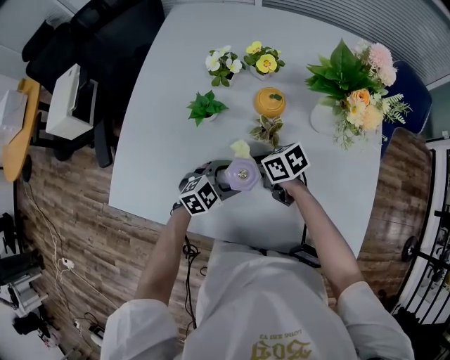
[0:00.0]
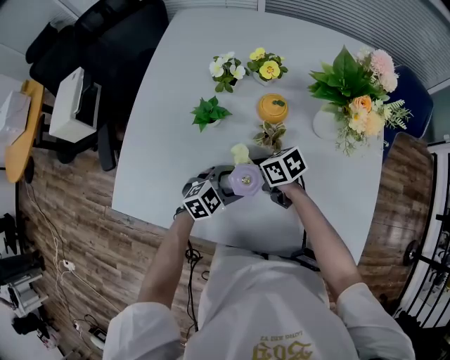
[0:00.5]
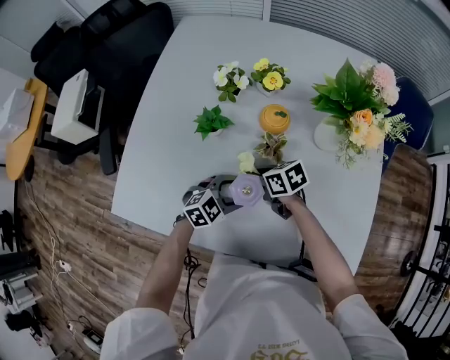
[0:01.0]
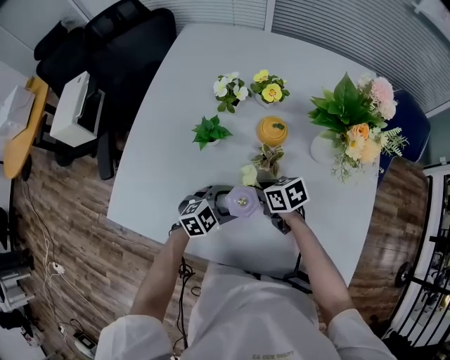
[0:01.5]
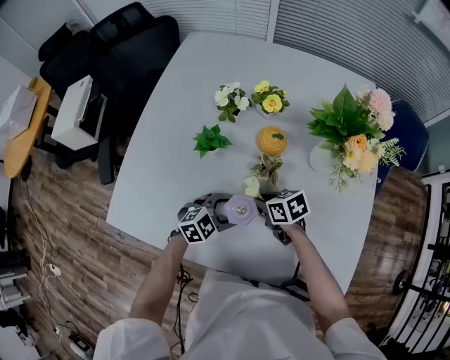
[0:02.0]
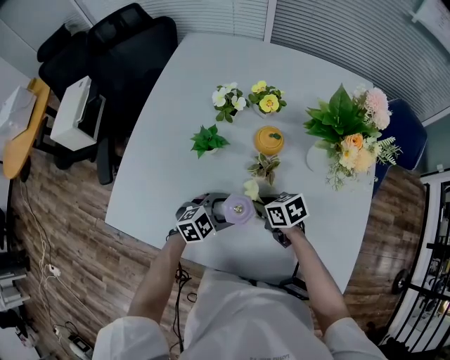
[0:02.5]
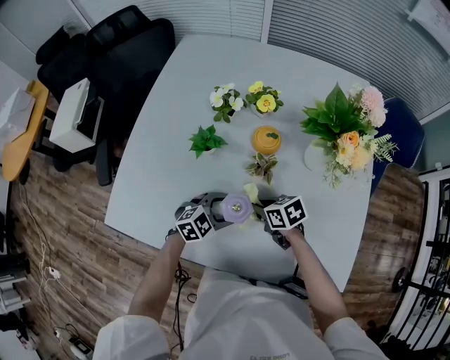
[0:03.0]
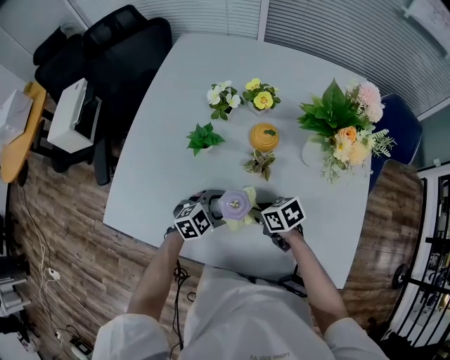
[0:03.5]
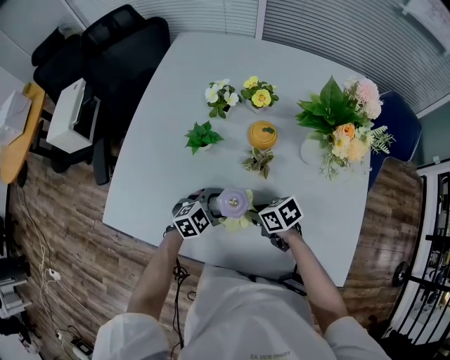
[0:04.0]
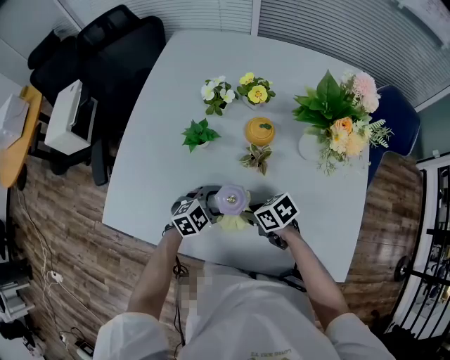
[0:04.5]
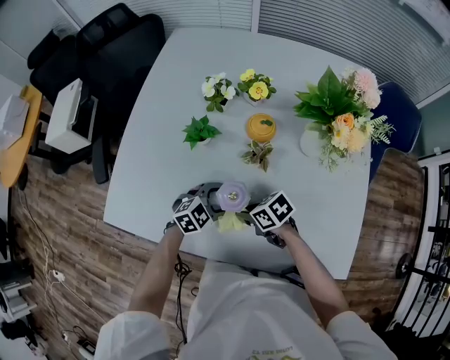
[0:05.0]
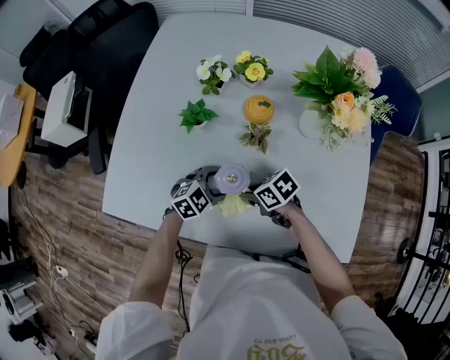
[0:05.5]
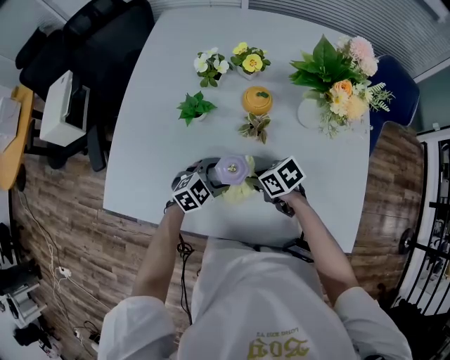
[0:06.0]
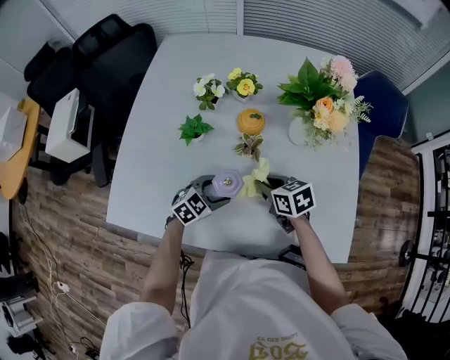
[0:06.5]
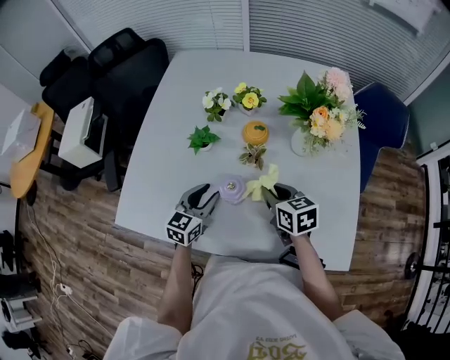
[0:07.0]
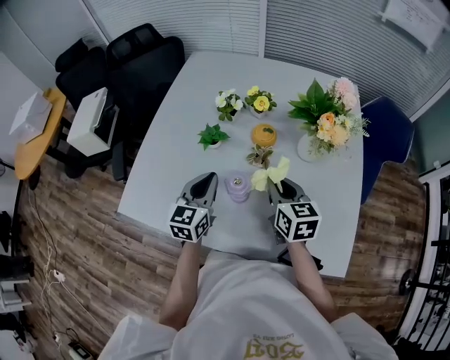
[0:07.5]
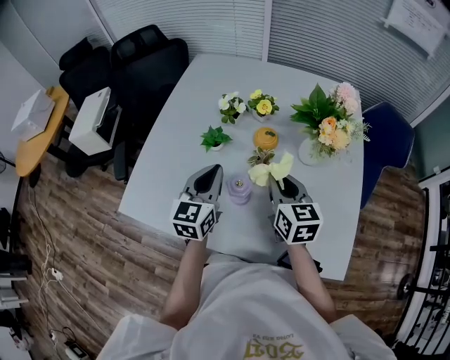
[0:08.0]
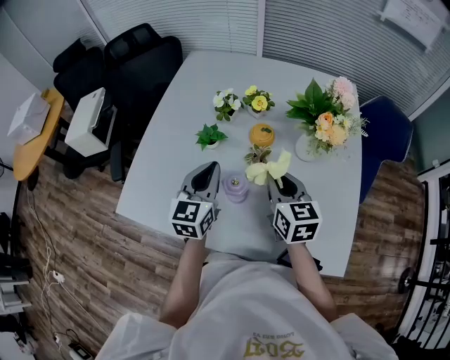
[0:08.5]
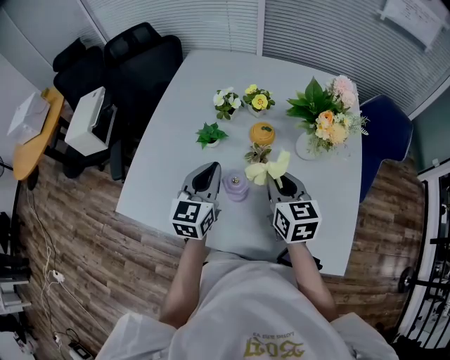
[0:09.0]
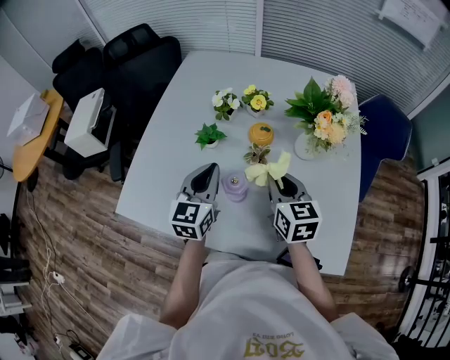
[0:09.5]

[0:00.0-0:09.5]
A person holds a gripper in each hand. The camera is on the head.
0:00.0 to 0:02.0: There are only small adjustments of the grippers.
0:02.0 to 0:04.0: The right gripper shifts by some 5 cm.
0:04.0 to 0:05.5: The grippers make only small movements.
0:05.5 to 0:07.5: The two grippers go about 20 cm upward. The left gripper turns by about 60 degrees, and closes up, while the right gripper changes its angle by about 60 degrees.
0:07.5 to 0:09.5: The grippers make only small movements.

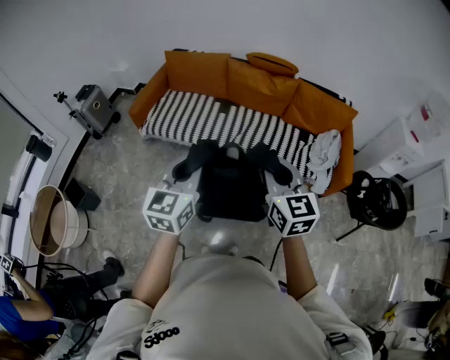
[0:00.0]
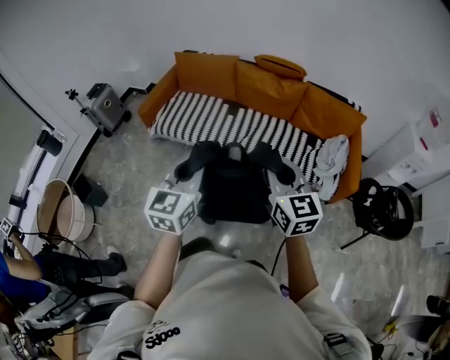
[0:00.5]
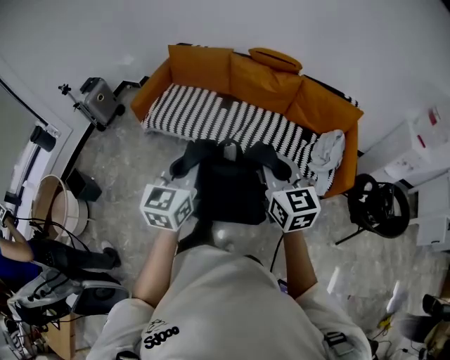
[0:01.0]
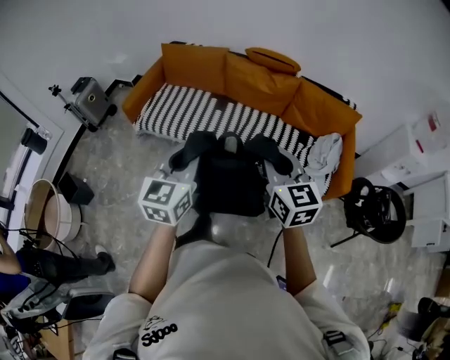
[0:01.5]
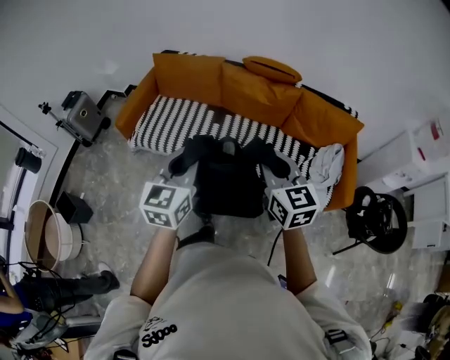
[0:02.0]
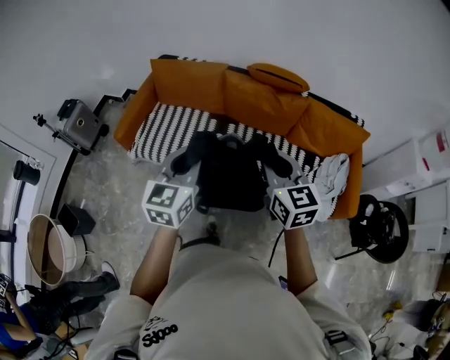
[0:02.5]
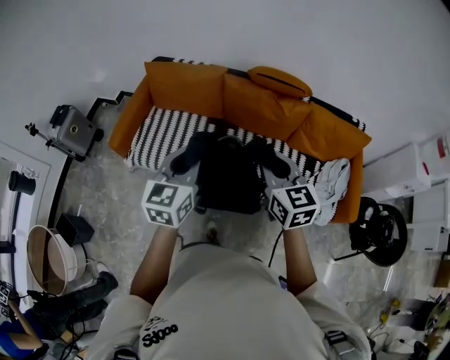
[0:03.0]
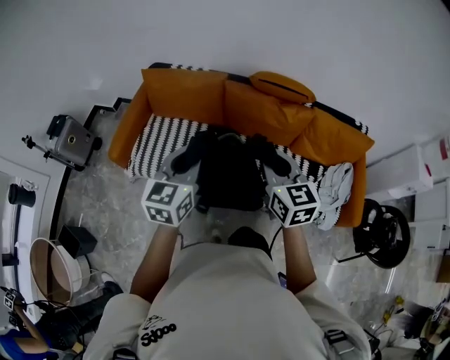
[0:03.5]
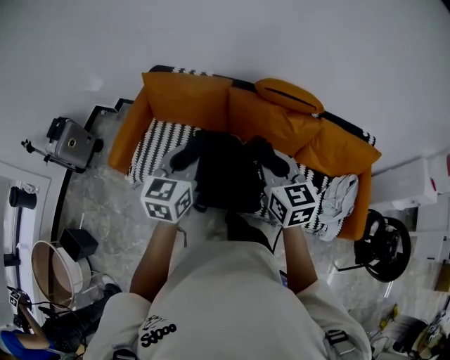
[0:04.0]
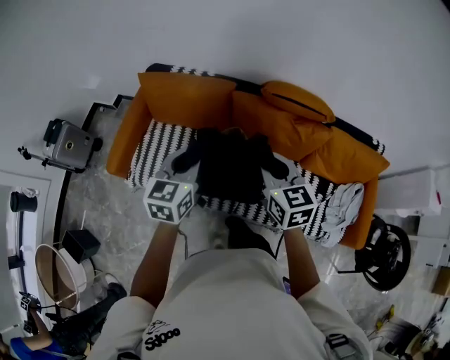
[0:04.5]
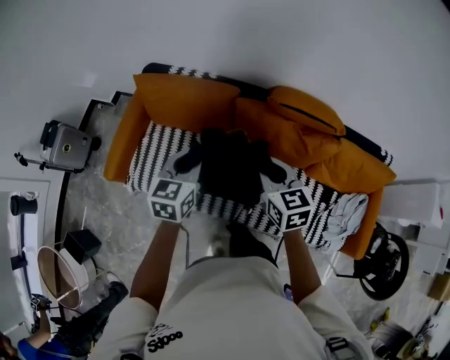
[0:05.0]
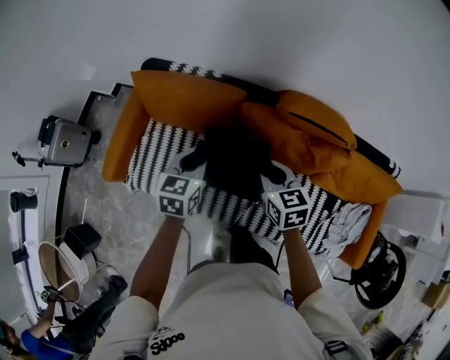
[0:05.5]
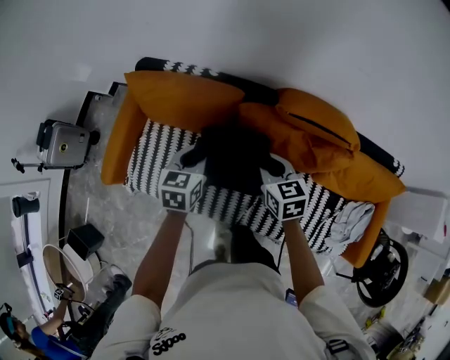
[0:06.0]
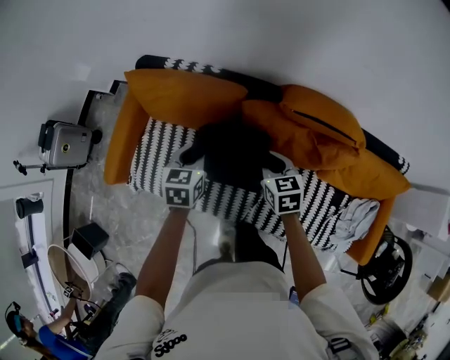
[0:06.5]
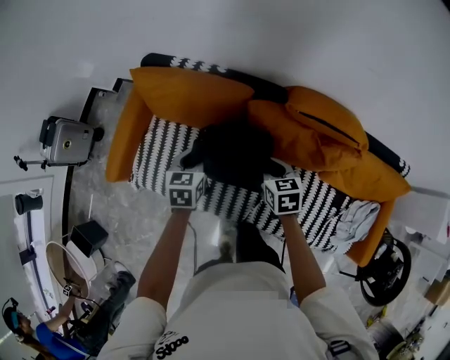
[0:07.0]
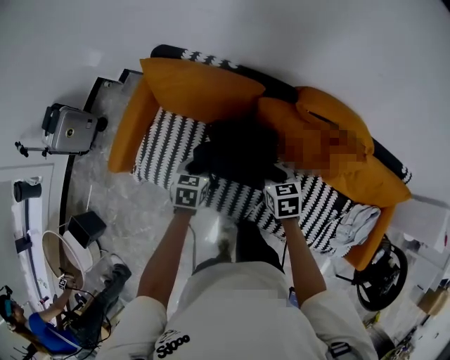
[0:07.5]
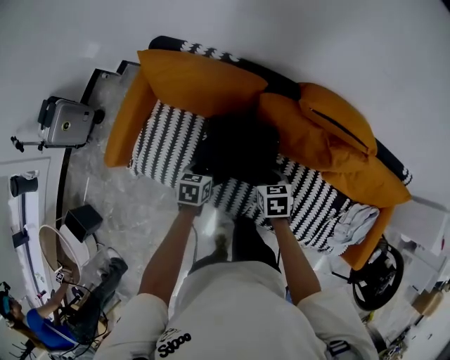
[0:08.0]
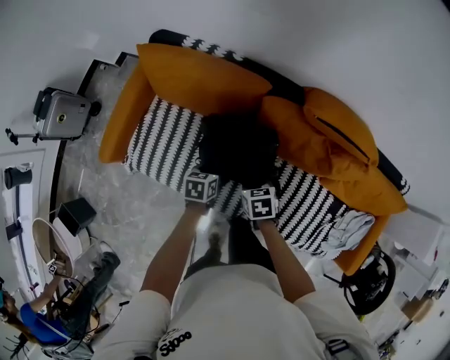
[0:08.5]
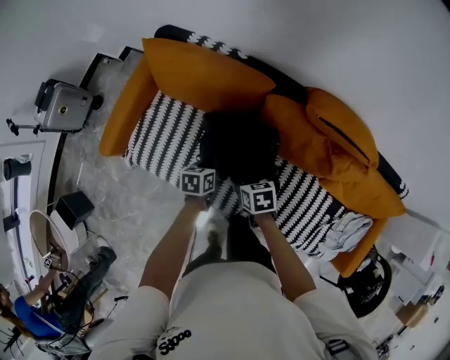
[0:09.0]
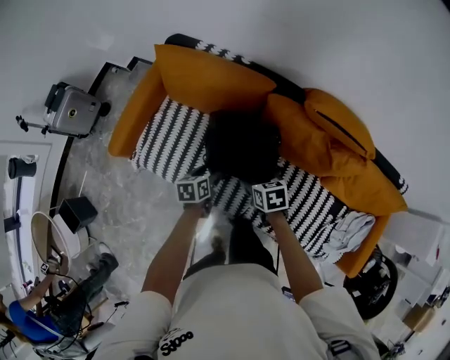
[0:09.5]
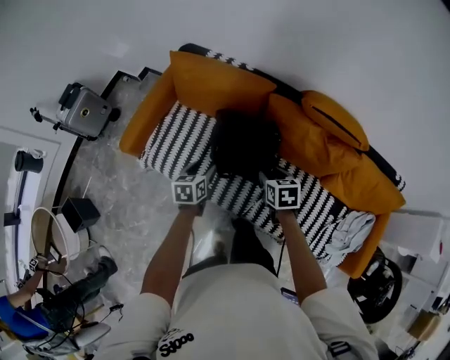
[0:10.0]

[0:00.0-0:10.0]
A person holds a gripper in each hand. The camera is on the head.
0:00.0 to 0:02.0: Both grippers move forward, approximately 20 cm.
0:02.0 to 0:04.0: Both grippers move forward, approximately 30 cm.
0:04.0 to 0:06.0: Both grippers travel together forward and downward, some 35 cm. The left gripper swivels about 20 degrees, while the right gripper rotates approximately 20 degrees.
0:06.0 to 0:08.0: Both grippers travel together downward and backward, about 15 cm. The right gripper turns by roughly 20 degrees; the left gripper swivels roughly 20 degrees, and opens.
0:08.0 to 0:10.0: The left gripper is displaced backward, to the left and upward by approximately 10 cm, and opens. The right gripper is displaced backward and upward by approximately 10 cm, and opens up.

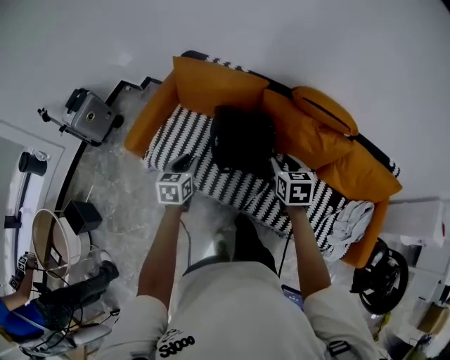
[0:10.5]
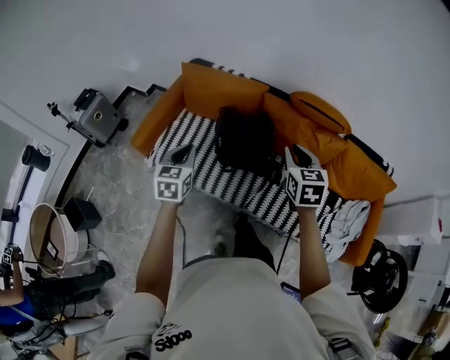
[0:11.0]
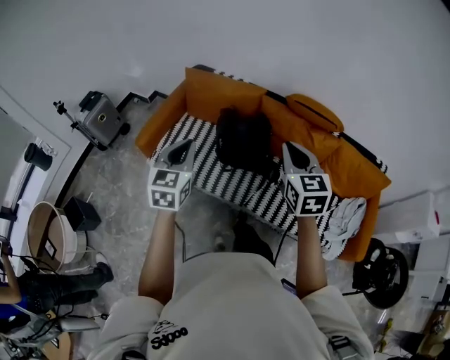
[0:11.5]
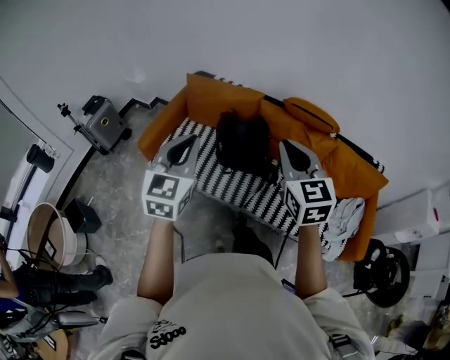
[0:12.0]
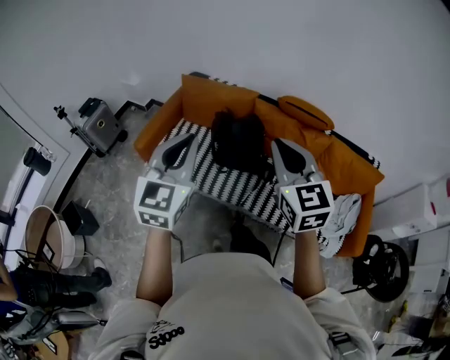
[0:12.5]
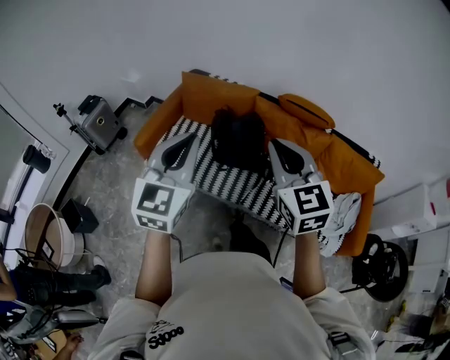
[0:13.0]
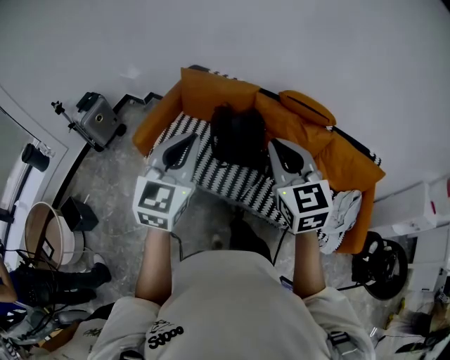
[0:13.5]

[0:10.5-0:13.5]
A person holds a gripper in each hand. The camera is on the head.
0:10.5 to 0:12.0: Both grippers travel together upward and backward, about 35 cm. The right gripper turns by approximately 30 degrees, and closes up; the left gripper changes its angle by some 40 degrees, and closes.
0:12.0 to 0:13.5: The left gripper ends up roughly 5 cm from where it was.

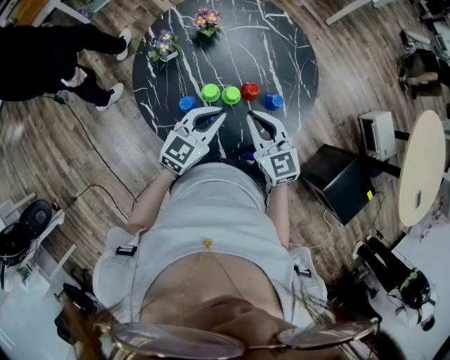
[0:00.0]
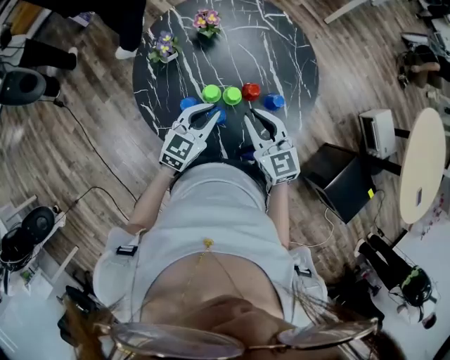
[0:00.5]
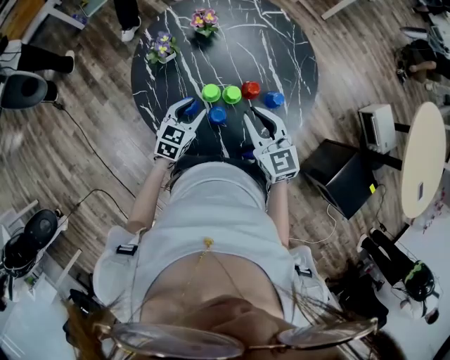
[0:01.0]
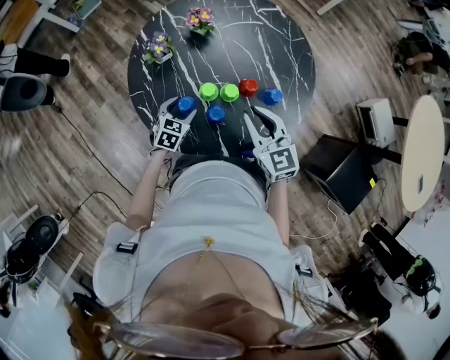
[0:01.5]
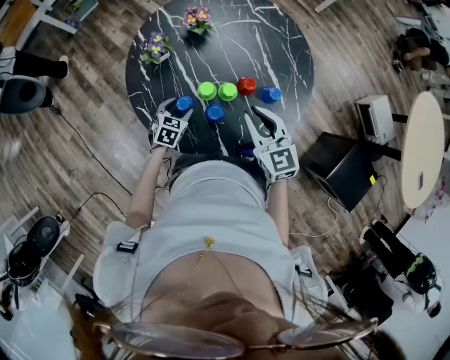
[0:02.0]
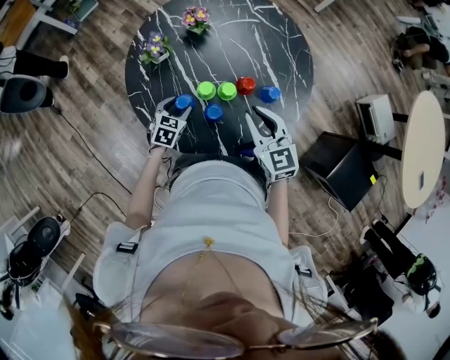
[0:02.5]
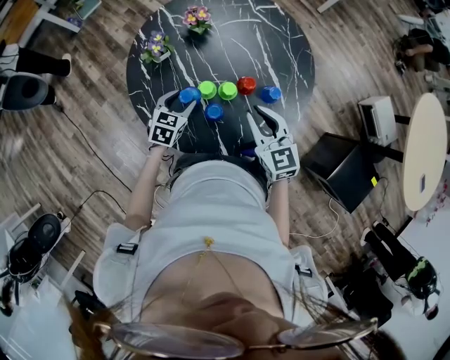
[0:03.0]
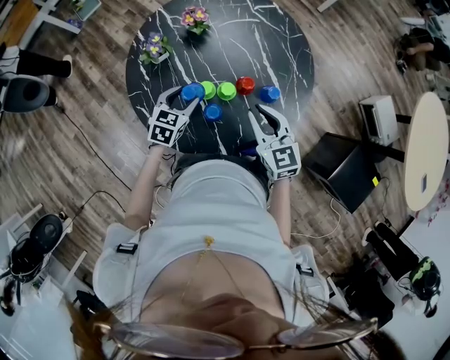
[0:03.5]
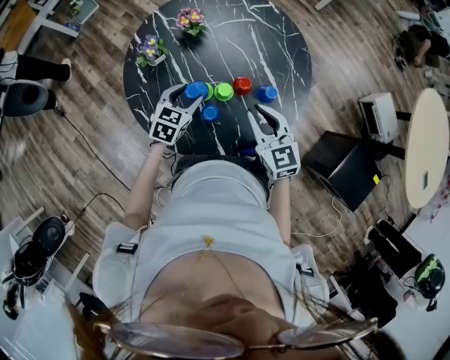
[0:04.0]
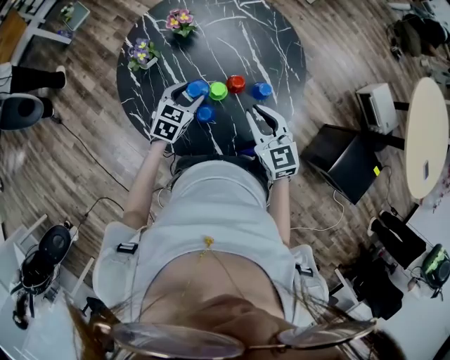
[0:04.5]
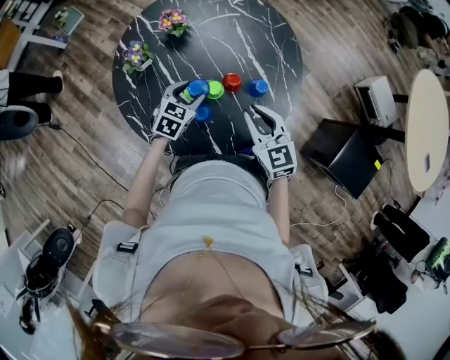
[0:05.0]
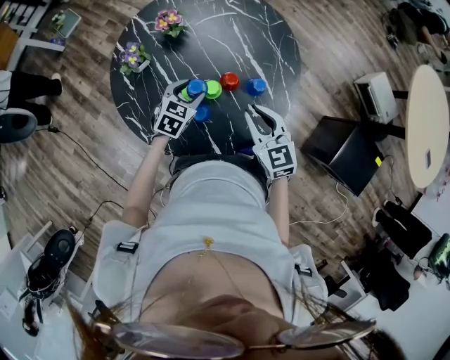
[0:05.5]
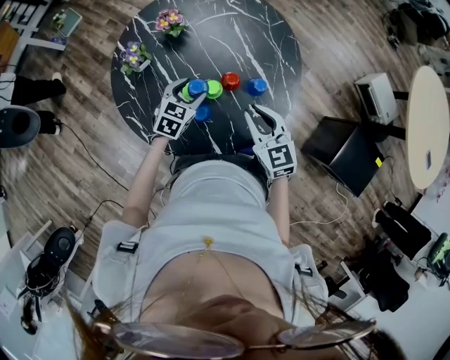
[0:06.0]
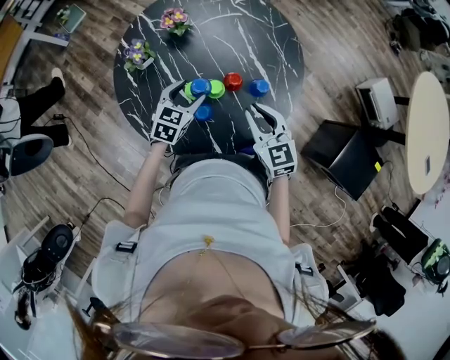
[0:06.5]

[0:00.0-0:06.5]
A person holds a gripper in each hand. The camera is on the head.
0:00.0 to 0:02.0: The left gripper is displaced downward and to the left by approximately 25 cm, points its fingers approximately 30 degrees further downward, and opens.
0:02.0 to 0:04.5: The left gripper heads upward and to the right, covering some 15 cm.
0:04.5 to 0:06.5: The grippers move only a little.
